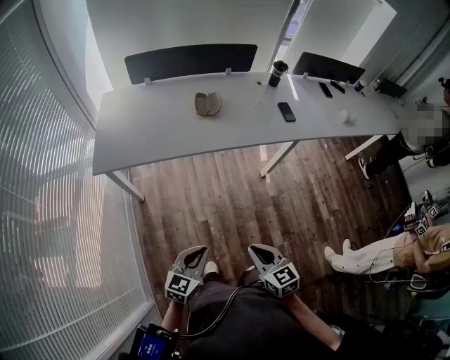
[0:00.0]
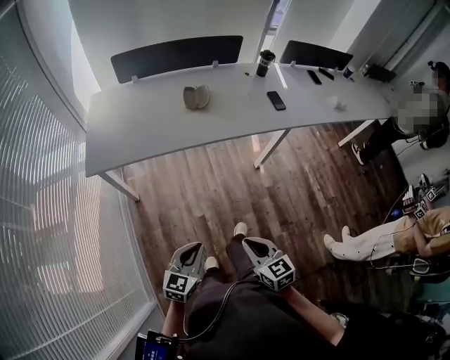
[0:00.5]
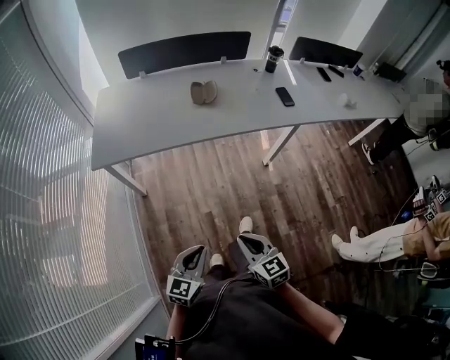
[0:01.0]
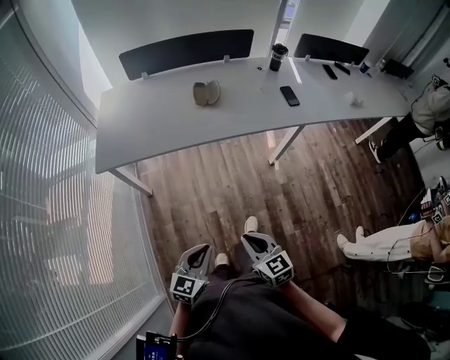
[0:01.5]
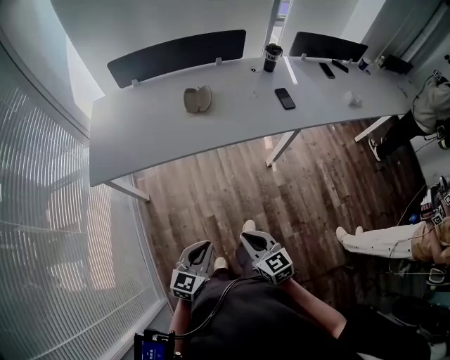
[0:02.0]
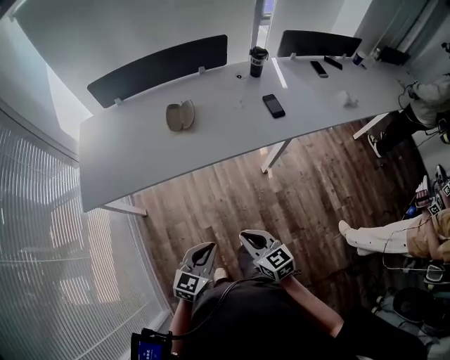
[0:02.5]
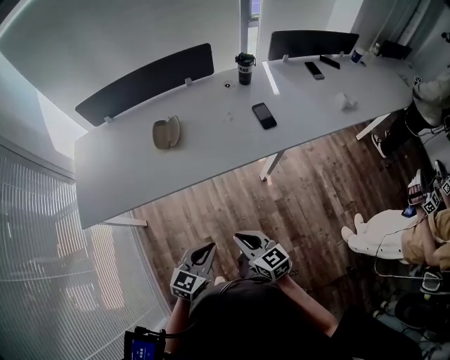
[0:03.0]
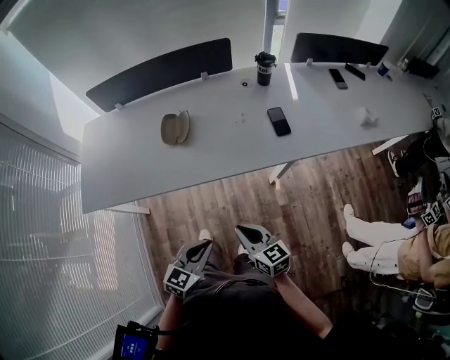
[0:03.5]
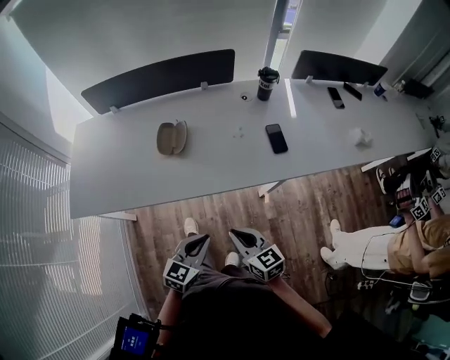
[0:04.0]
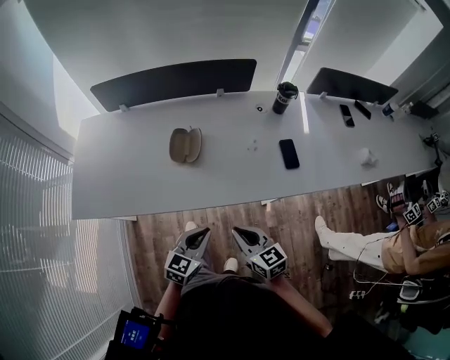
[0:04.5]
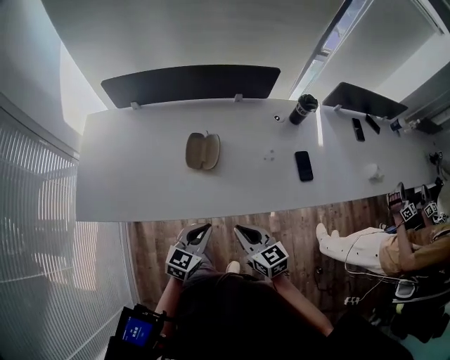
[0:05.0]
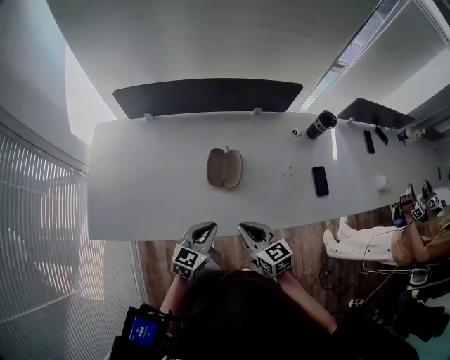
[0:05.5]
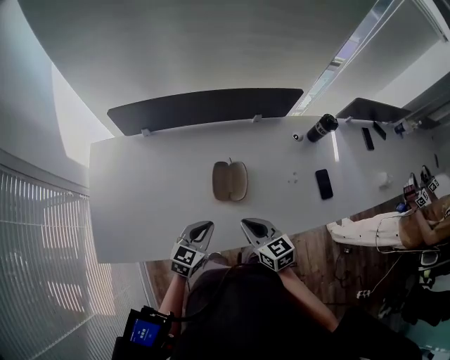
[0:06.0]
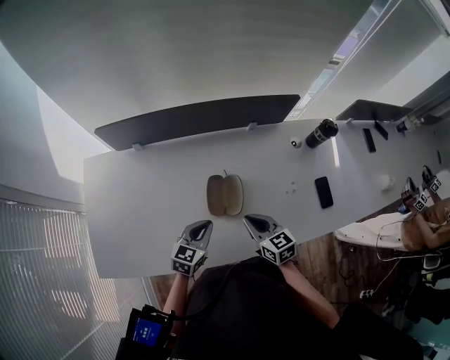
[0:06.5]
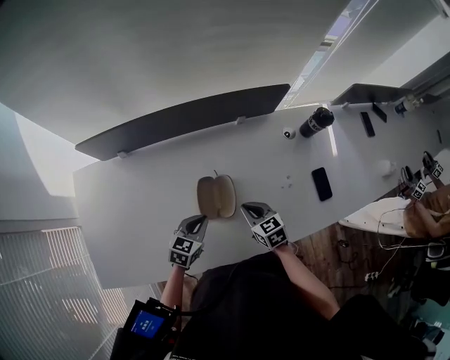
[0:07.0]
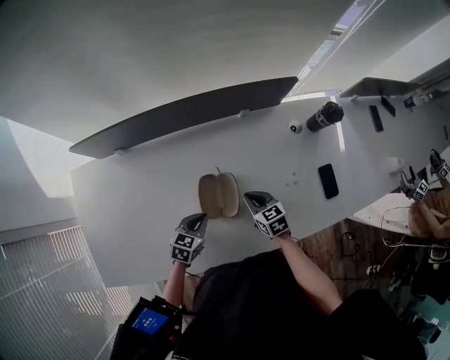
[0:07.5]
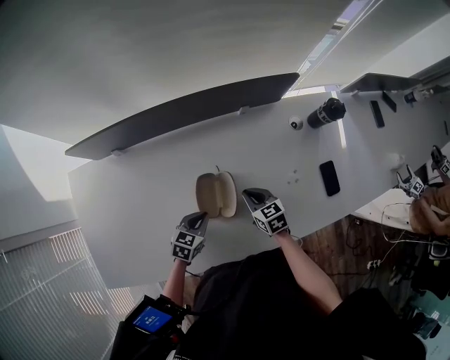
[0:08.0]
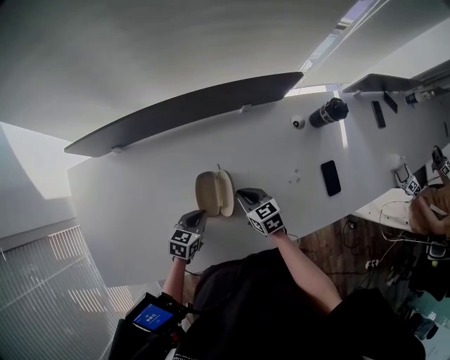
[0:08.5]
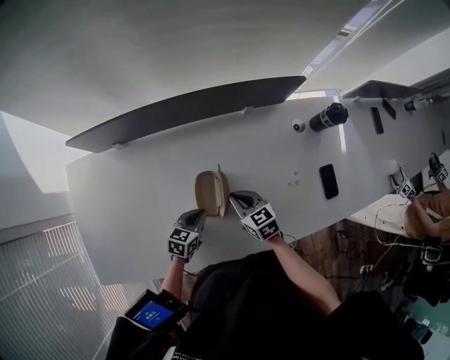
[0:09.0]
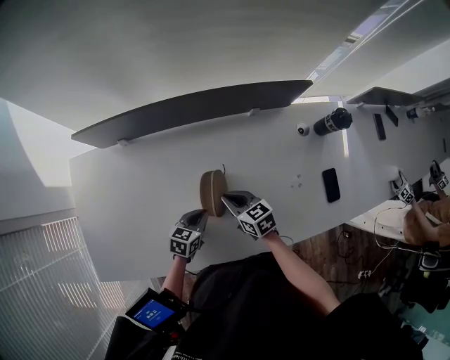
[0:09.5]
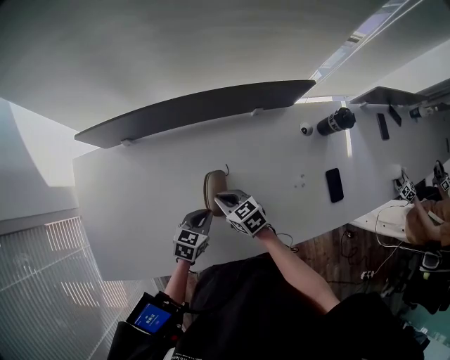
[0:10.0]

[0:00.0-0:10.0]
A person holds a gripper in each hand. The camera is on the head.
0:00.0 to 0:02.0: The left gripper changes place by approximately 5 cm; the right gripper shifts roughly 10 cm forward.
0:02.0 to 0:04.0: Both grippers travel together forward and to the right, some 30 cm.
0:04.0 to 0:06.0: Both grippers move forward and to the left, roughly 35 cm.
0:06.0 to 0:08.0: The right gripper travels forward and downward by approximately 20 cm, while the left gripper goes roughly 15 cm downward and forward, and changes its angle by roughly 20 degrees.
0:08.0 to 0:10.0: The right gripper is displaced to the left by about 15 cm.

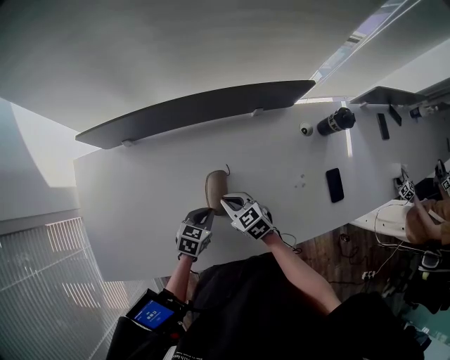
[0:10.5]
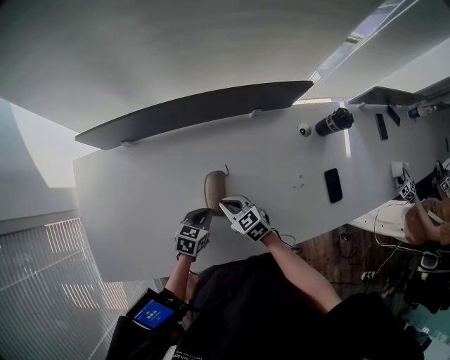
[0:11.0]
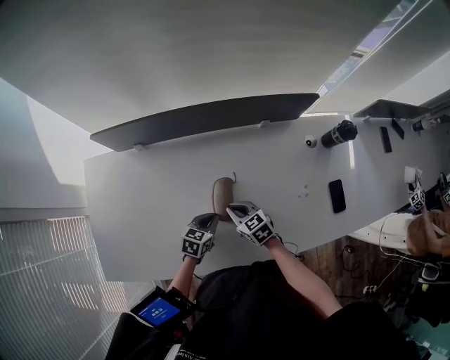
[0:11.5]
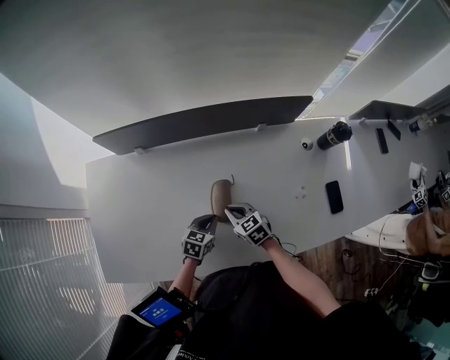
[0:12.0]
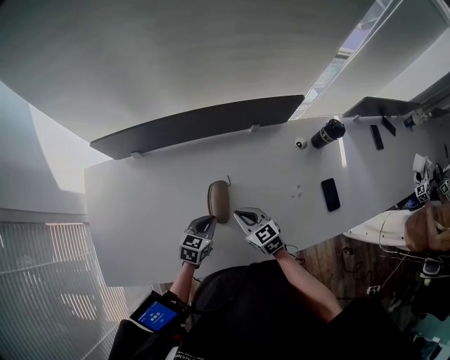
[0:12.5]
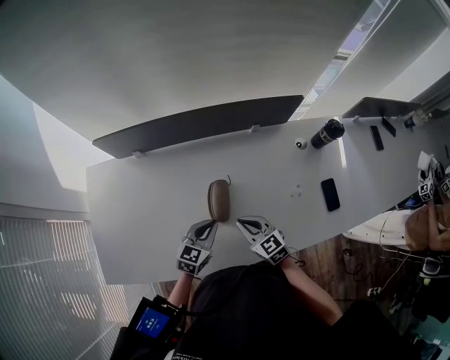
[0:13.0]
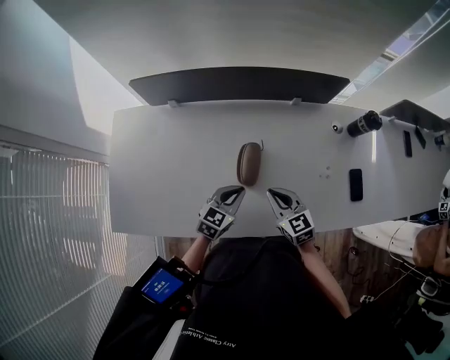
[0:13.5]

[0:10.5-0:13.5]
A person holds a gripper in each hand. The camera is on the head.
0:10.5 to 0:12.0: There are only small adjustments of the grippers.
0:12.0 to 0:13.5: The left gripper goes some 10 cm upward. The right gripper goes about 10 cm upward, backward and to the right.

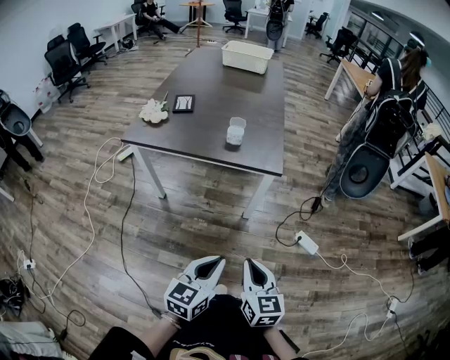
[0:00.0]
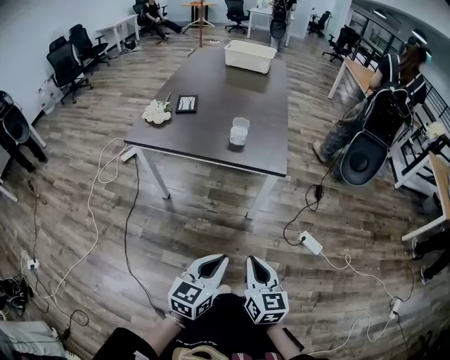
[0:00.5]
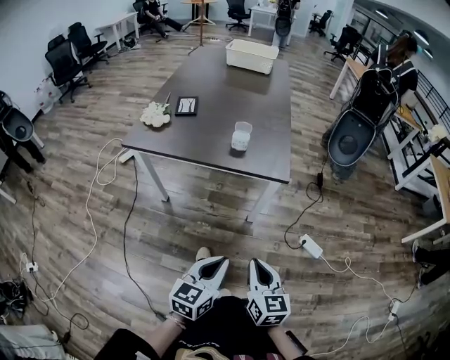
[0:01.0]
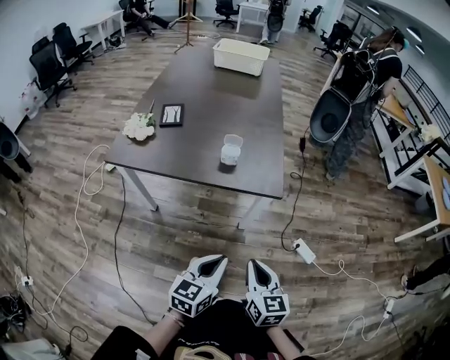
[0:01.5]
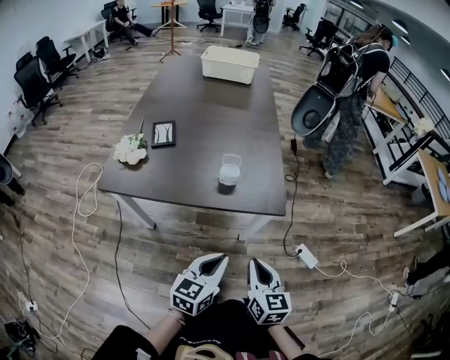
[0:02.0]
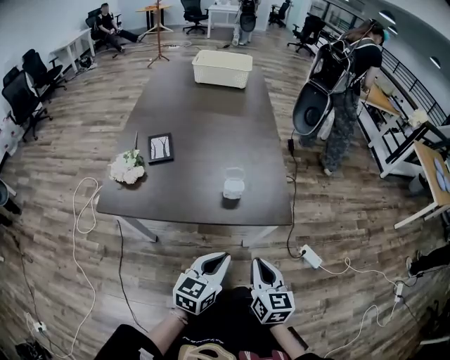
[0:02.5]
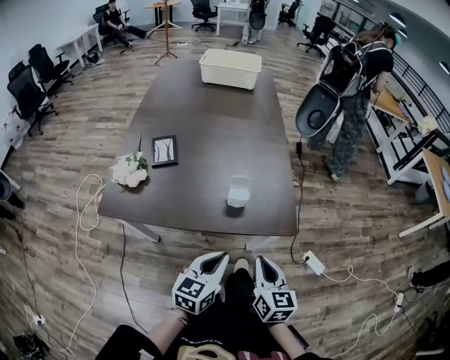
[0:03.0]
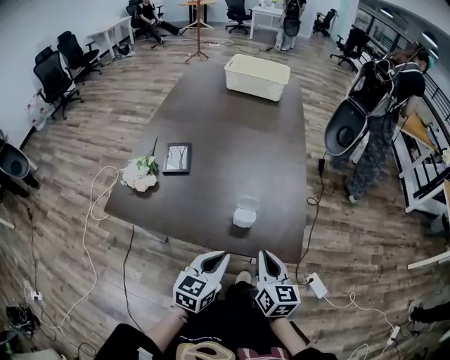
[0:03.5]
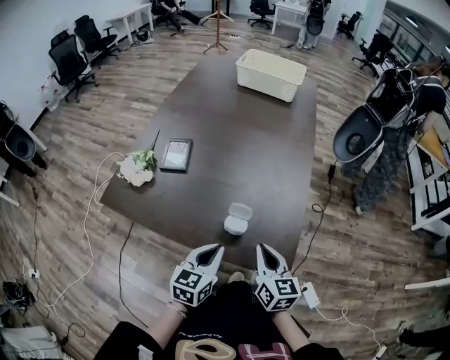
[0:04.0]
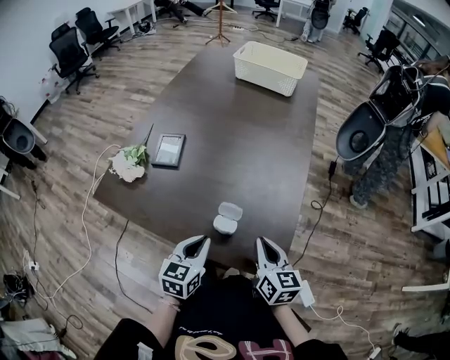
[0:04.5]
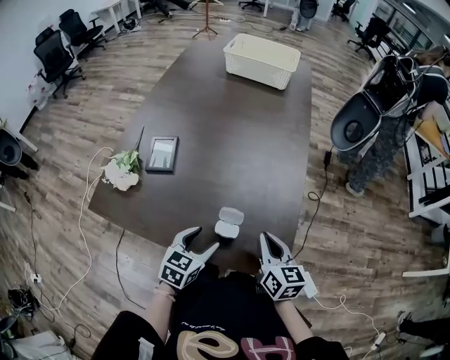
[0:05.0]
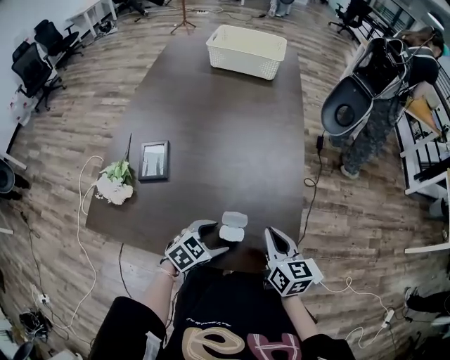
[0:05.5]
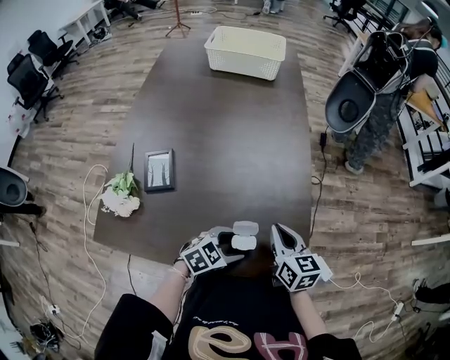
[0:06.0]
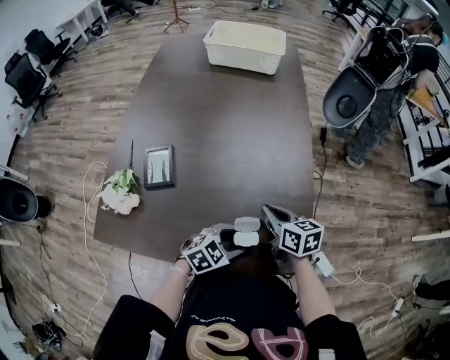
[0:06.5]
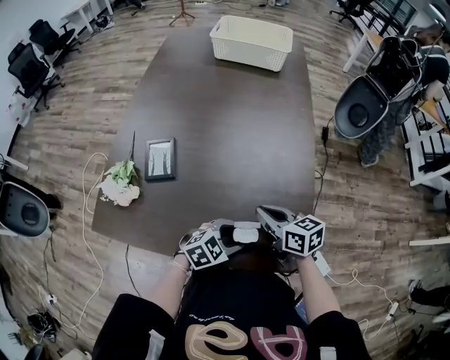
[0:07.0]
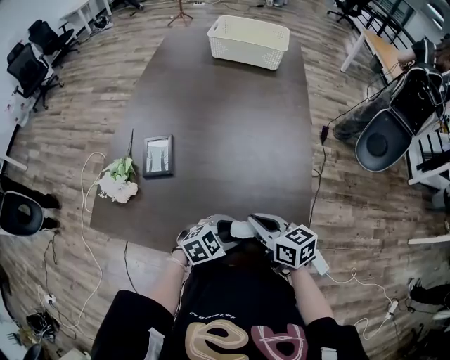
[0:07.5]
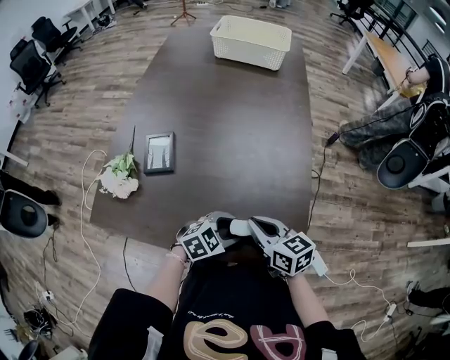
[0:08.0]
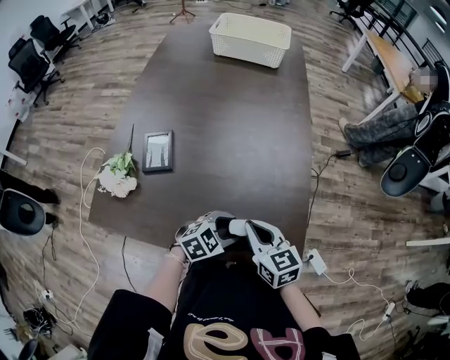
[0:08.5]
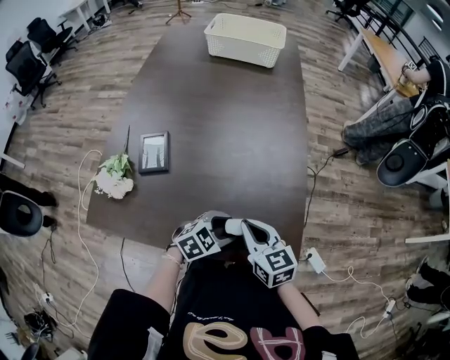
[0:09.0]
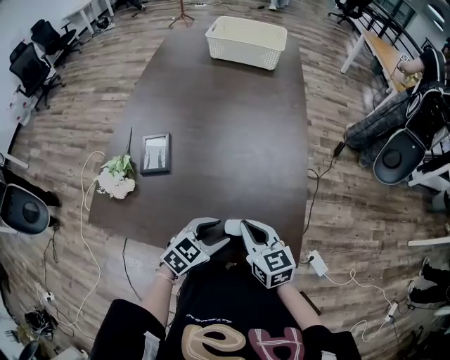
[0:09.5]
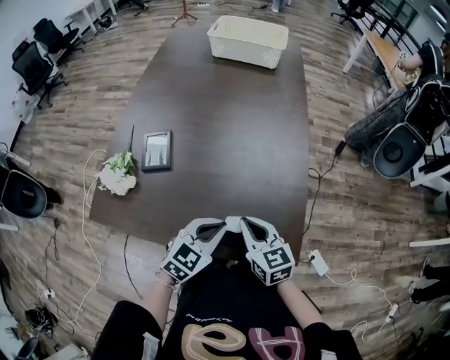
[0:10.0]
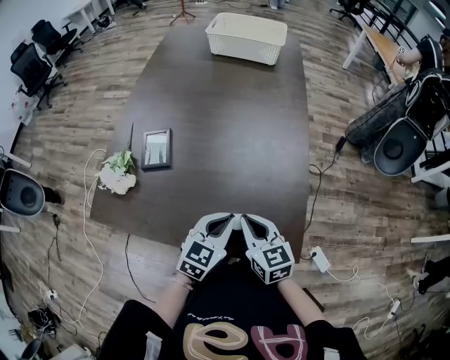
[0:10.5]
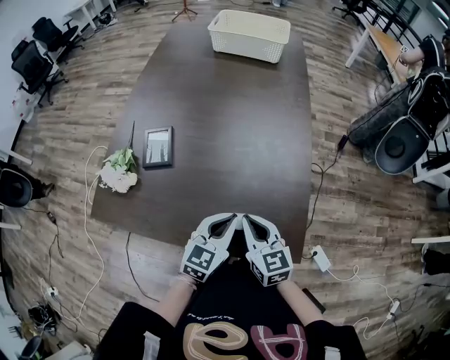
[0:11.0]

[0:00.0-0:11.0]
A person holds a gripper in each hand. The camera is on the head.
0:00.0 to 0:02.0: Both grippers move forward, roughly 20 cm.
0:02.0 to 0:03.5: Both grippers move forward, about 20 cm.
0:03.5 to 0:05.5: The right gripper shifts by roughly 15 cm. The left gripper changes place by approximately 15 cm, turns by approximately 40 degrees, and opens.
0:05.5 to 0:07.5: The right gripper shifts approximately 10 cm to the left, and rotates about 30 degrees.
0:09.0 to 0:11.0: The left gripper travels upward by some 10 cm, turns by approximately 40 degrees, and closes up.

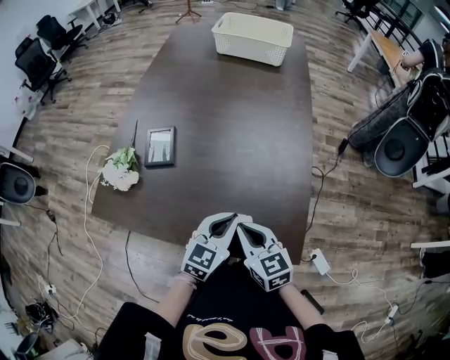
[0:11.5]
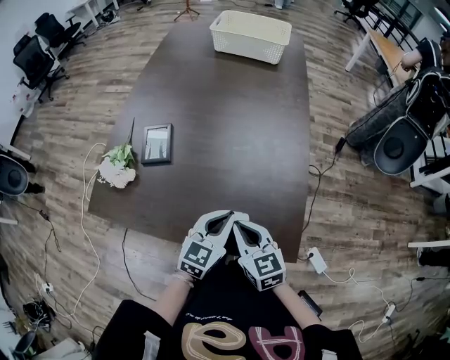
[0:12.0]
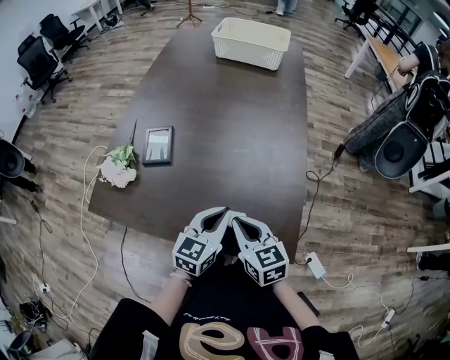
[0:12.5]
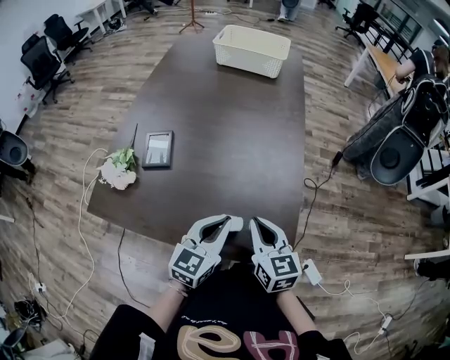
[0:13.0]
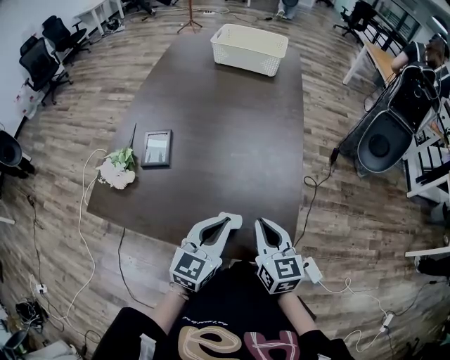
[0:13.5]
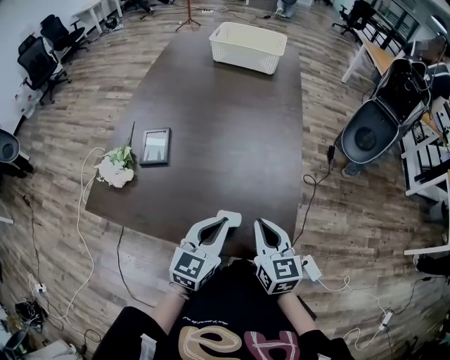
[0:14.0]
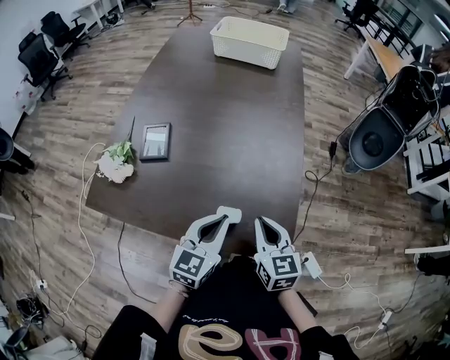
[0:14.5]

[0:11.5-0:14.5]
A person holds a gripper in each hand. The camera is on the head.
0:11.5 to 0:13.0: The left gripper shifts roughly 5 cm upward, while the right gripper moves to the right, approximately 5 cm.
0:13.0 to 0:14.5: The grippers stay close to where they were, moving slightly.
